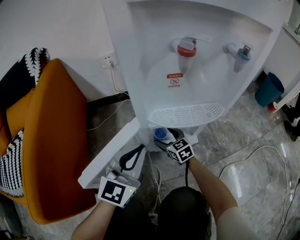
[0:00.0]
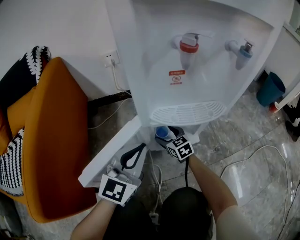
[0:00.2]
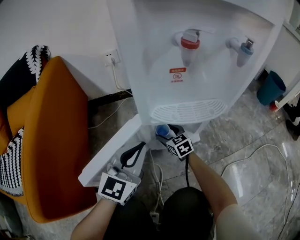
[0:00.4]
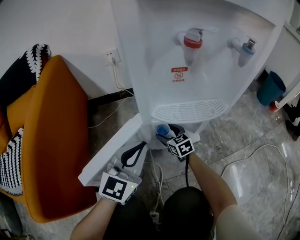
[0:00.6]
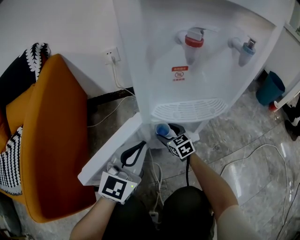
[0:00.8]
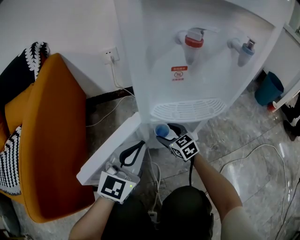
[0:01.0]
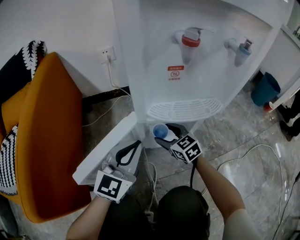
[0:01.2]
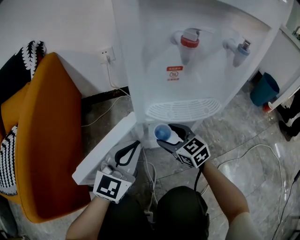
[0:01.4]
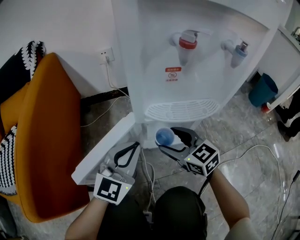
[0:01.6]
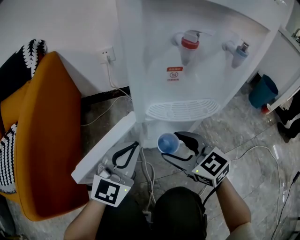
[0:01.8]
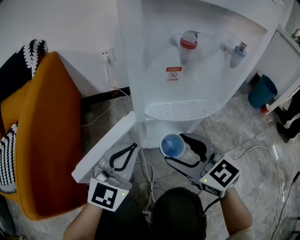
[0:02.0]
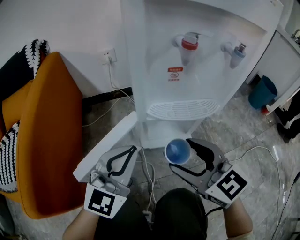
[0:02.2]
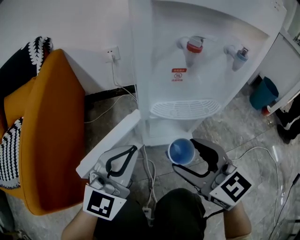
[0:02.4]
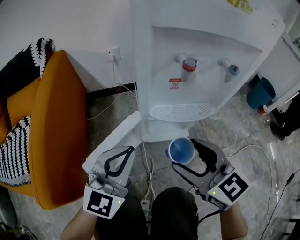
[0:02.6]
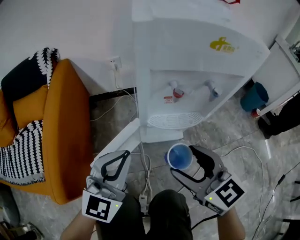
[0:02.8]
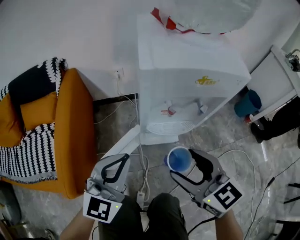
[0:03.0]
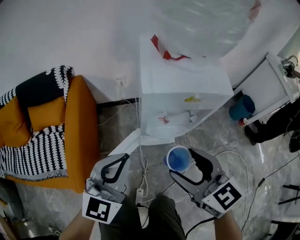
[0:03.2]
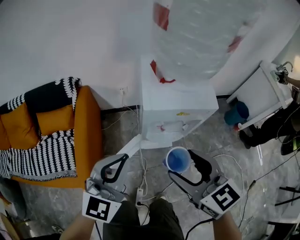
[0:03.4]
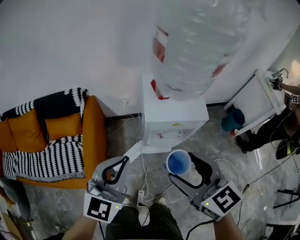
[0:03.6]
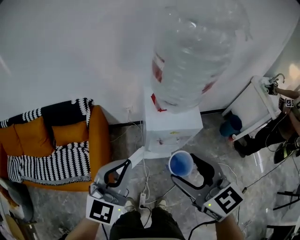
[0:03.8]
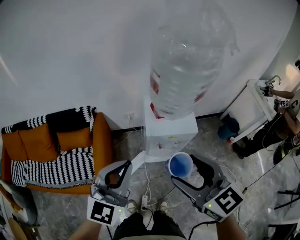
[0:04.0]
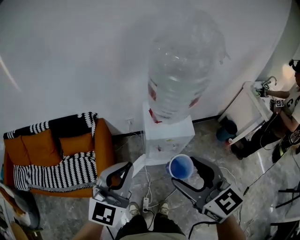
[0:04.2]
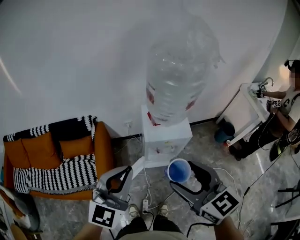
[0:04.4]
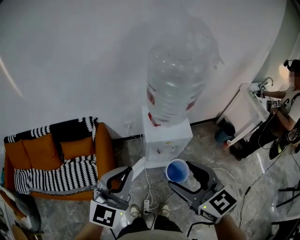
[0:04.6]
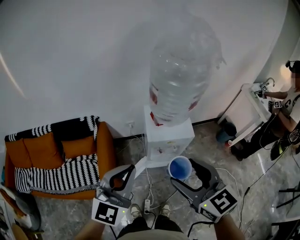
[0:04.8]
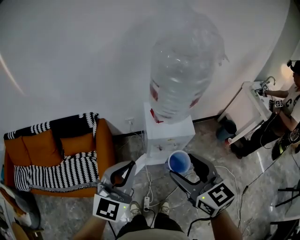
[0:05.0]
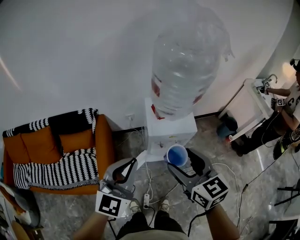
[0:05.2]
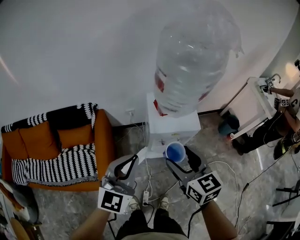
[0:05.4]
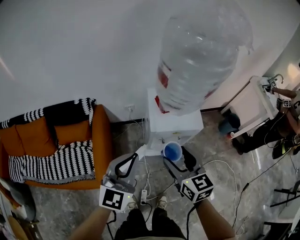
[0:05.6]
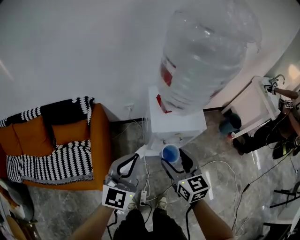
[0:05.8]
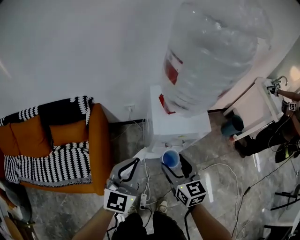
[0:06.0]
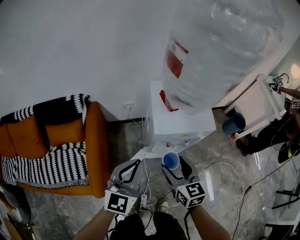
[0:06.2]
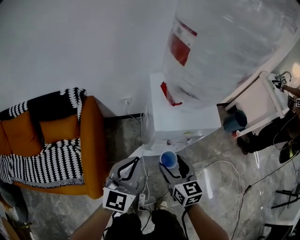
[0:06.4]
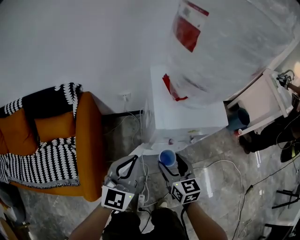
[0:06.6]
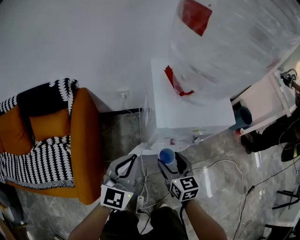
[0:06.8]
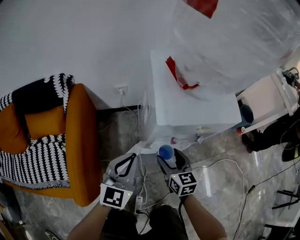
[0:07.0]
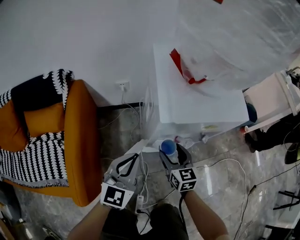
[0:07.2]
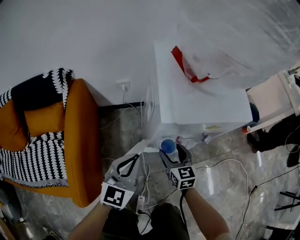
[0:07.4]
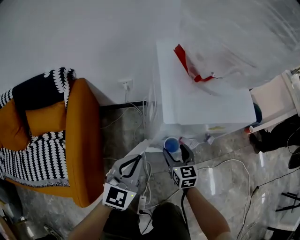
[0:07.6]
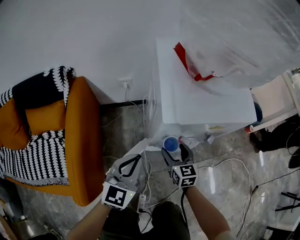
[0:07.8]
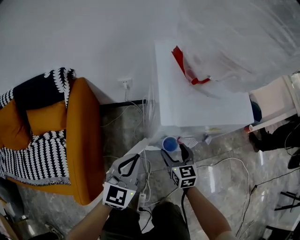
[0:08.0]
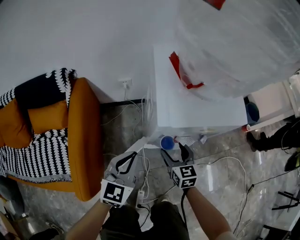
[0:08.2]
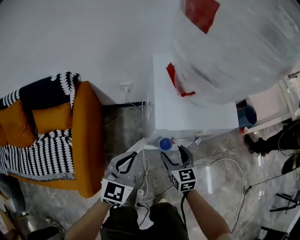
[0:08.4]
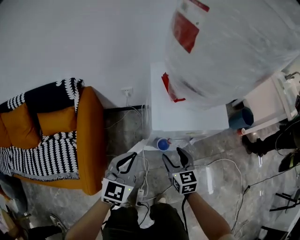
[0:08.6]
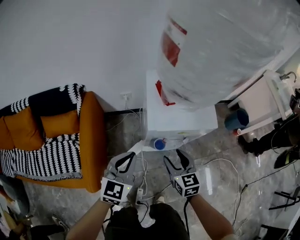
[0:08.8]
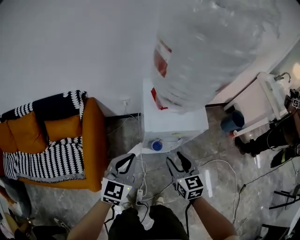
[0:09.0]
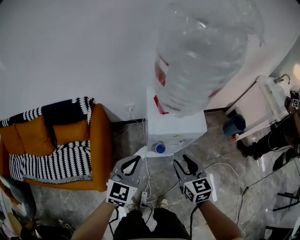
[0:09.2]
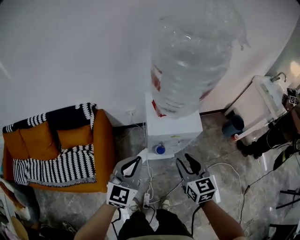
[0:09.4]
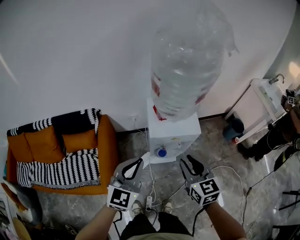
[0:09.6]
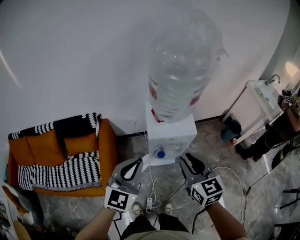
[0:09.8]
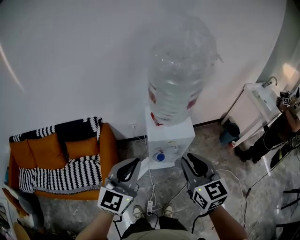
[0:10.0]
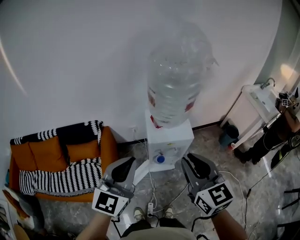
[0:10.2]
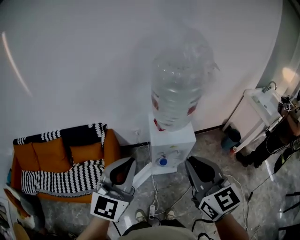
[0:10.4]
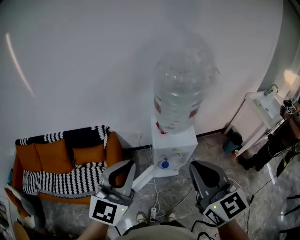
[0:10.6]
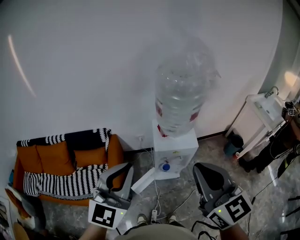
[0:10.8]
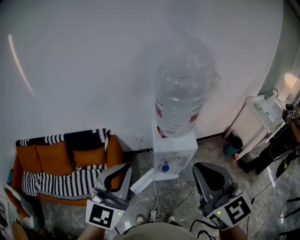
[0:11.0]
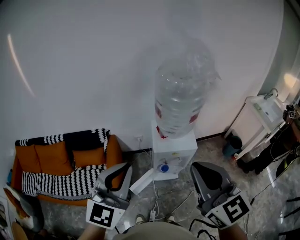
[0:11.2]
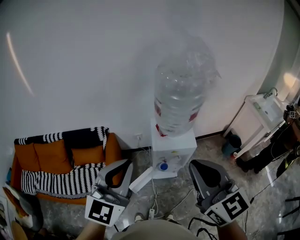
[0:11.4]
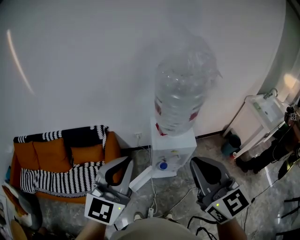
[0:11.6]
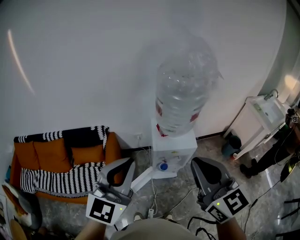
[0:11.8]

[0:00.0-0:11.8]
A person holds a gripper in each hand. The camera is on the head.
0:00.0 to 0:01.4: The right gripper moves upward and backward, approximately 10 cm.
0:01.4 to 0:03.0: Both grippers move upward, some 35 cm.
0:03.0 to 0:04.4: Both grippers travel together upward, about 50 cm.
0:04.4 to 0:06.0: Both grippers travel together downward, roughly 25 cm.
0:06.0 to 0:07.4: Both grippers travel together downward, approximately 30 cm.
0:07.4 to 0:08.8: Both grippers travel together upward, about 20 cm.
0:08.8 to 0:10.4: Both grippers move upward, about 40 cm. The right gripper swivels approximately 20 degrees, and closes its fingers. Meanwhile the left gripper turns by about 20 degrees.
0:10.4 to 0:11.8: The right gripper is displaced upward by some 5 cm.

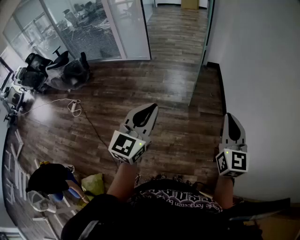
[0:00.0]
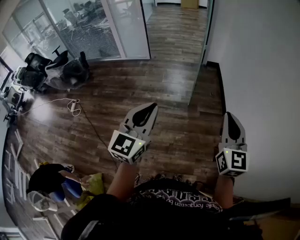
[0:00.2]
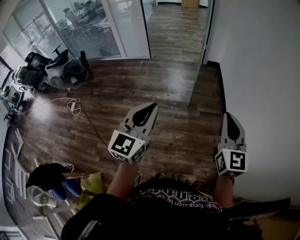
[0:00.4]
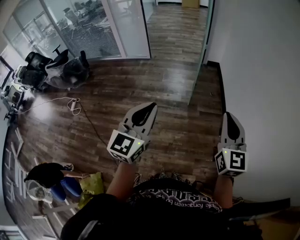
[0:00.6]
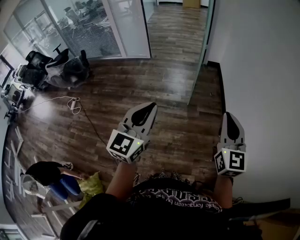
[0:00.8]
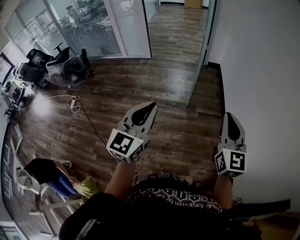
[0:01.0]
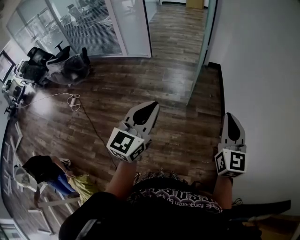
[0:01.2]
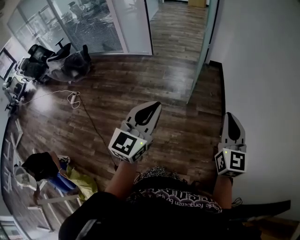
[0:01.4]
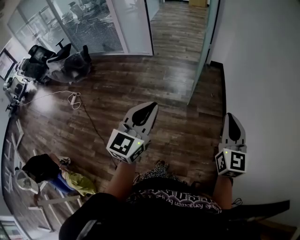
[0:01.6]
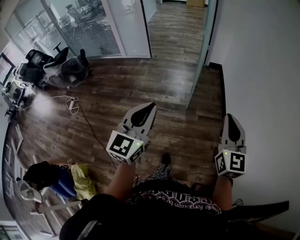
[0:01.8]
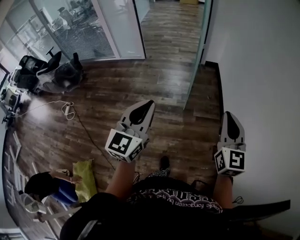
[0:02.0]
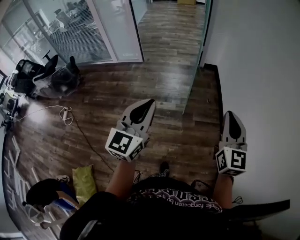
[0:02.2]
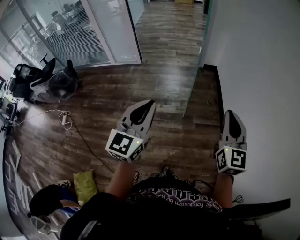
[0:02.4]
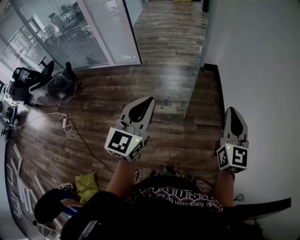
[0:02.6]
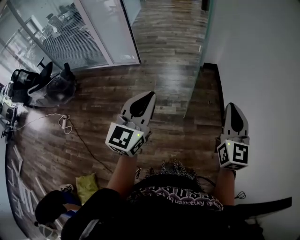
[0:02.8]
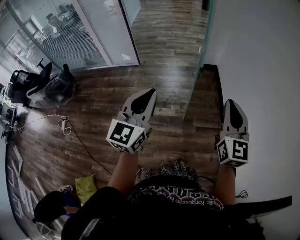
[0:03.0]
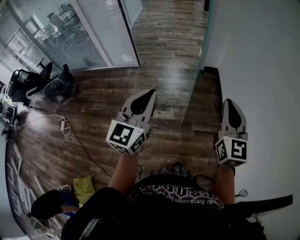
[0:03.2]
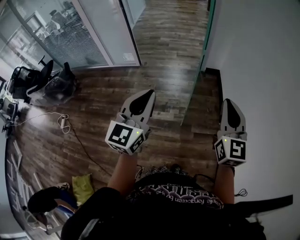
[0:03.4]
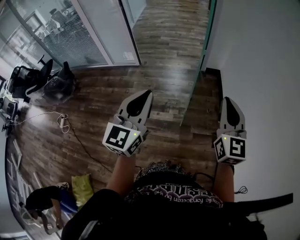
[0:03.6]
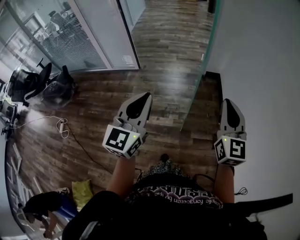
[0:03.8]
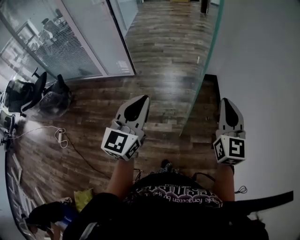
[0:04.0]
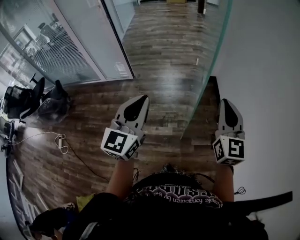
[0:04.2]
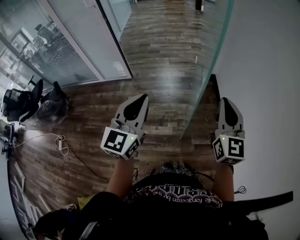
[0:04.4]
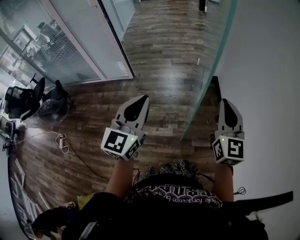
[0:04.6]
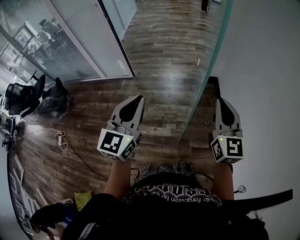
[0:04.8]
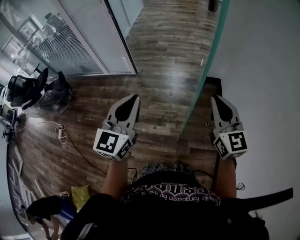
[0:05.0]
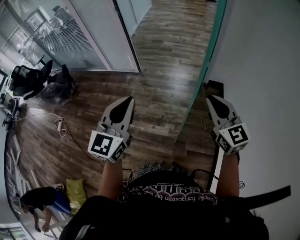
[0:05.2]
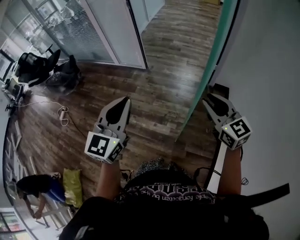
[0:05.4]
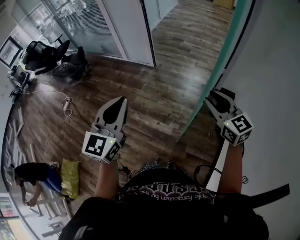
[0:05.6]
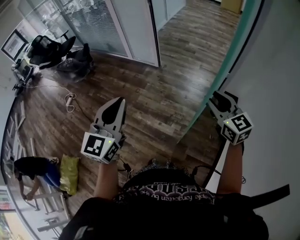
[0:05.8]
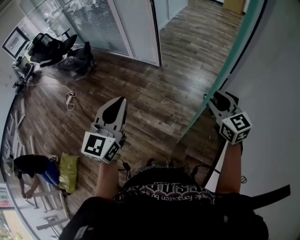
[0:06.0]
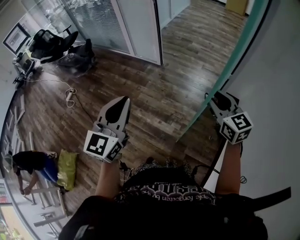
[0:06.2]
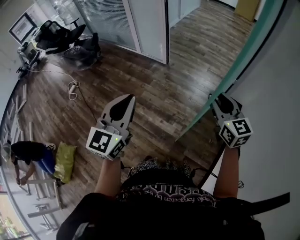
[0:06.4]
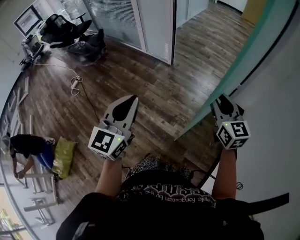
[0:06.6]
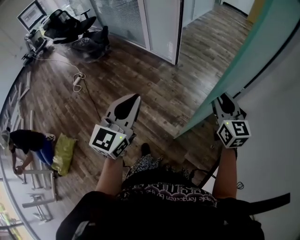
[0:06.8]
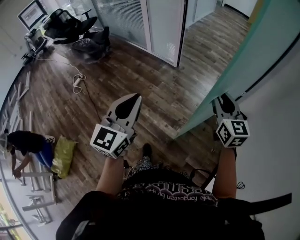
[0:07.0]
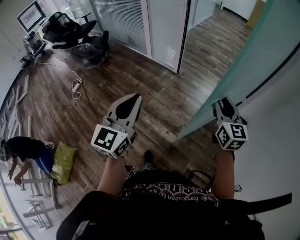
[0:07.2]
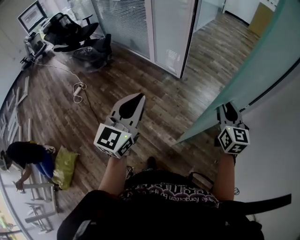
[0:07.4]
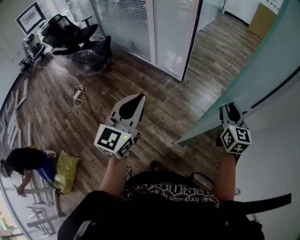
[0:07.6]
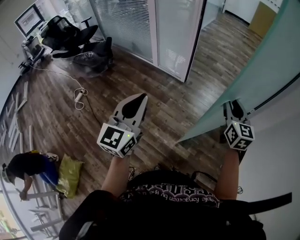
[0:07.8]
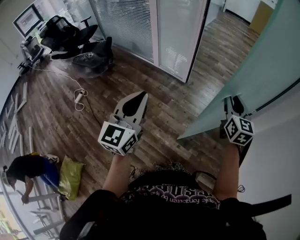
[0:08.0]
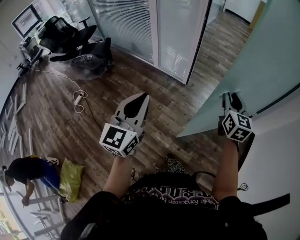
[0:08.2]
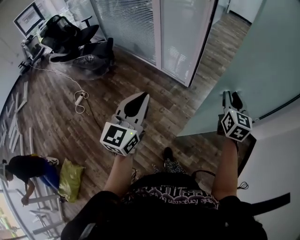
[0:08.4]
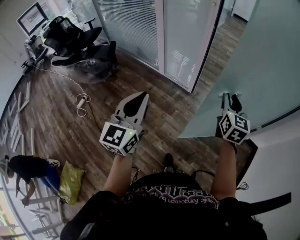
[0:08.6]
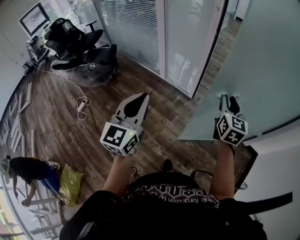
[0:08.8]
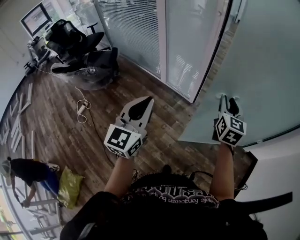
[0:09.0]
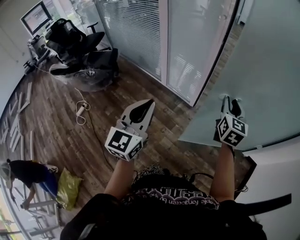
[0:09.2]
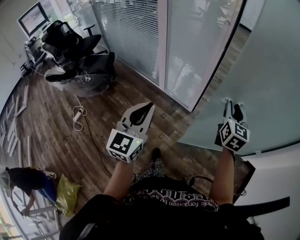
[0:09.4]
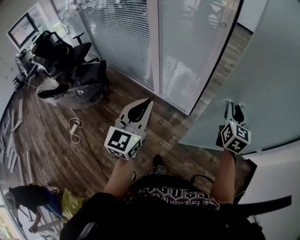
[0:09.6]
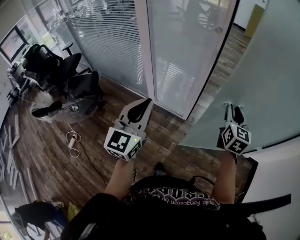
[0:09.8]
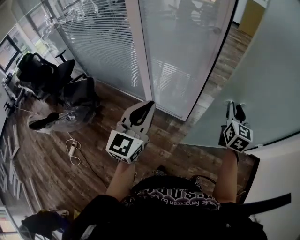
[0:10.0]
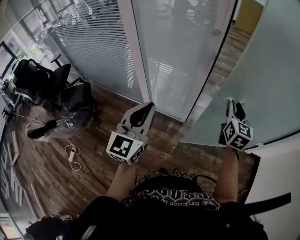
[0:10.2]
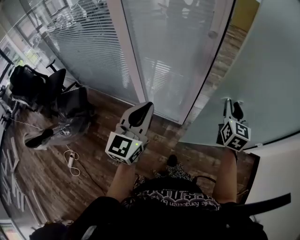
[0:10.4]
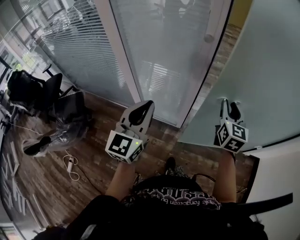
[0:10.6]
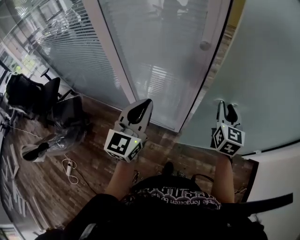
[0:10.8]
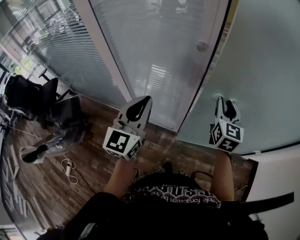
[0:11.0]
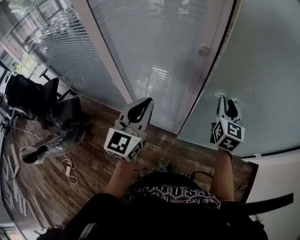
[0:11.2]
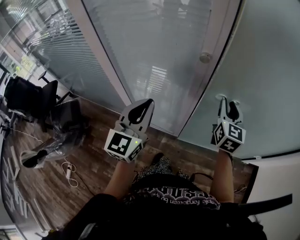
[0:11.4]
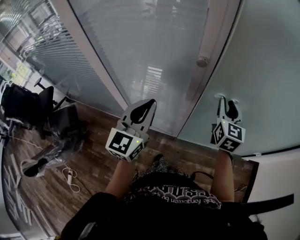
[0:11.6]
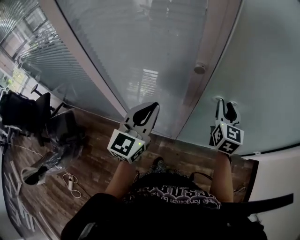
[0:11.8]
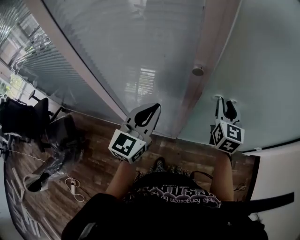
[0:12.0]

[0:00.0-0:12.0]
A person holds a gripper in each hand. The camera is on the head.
0:00.0 to 0:01.6: The right gripper shifts approximately 10 cm forward and to the right; the left gripper moves approximately 5 cm.
0:01.6 to 0:03.0: The two grippers go some 30 cm forward.
0:03.0 to 0:04.4: Both grippers travel together forward, roughly 20 cm.
0:04.4 to 0:06.0: The left gripper moves about 5 cm, and rotates about 30 degrees. The right gripper ends up roughly 15 cm from where it was, rotates some 50 degrees, and opens.
0:06.0 to 0:07.6: Both grippers travel together forward and to the left, approximately 25 cm.
0:07.6 to 0:09.0: The left gripper travels forward by approximately 25 cm. The right gripper moves forward and to the left, about 30 cm.
0:09.0 to 0:10.4: Both grippers travel together forward, approximately 30 cm.
0:10.4 to 0:12.0: Both grippers travel together forward, approximately 20 cm.
